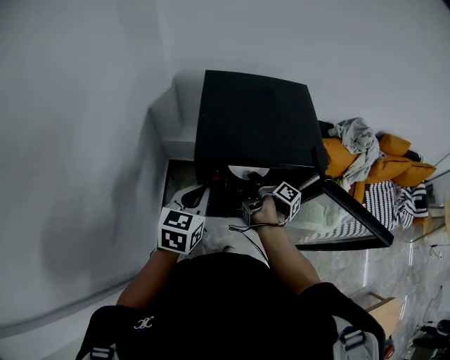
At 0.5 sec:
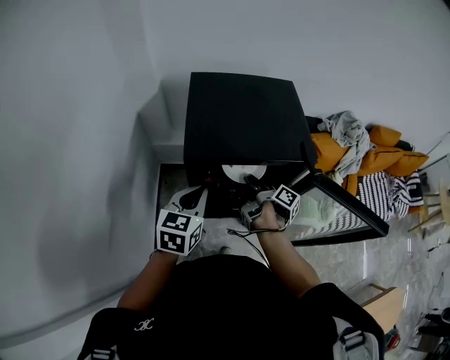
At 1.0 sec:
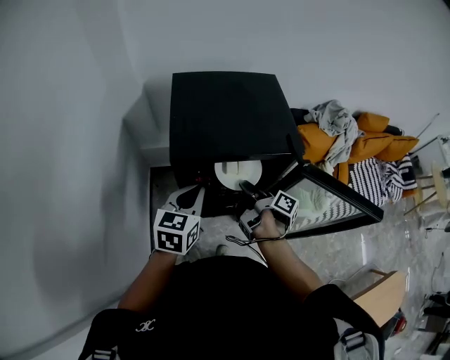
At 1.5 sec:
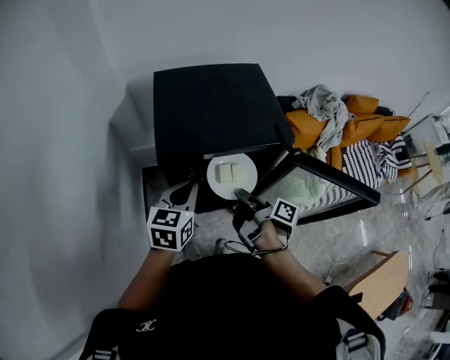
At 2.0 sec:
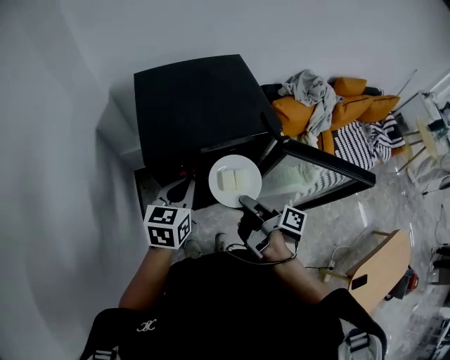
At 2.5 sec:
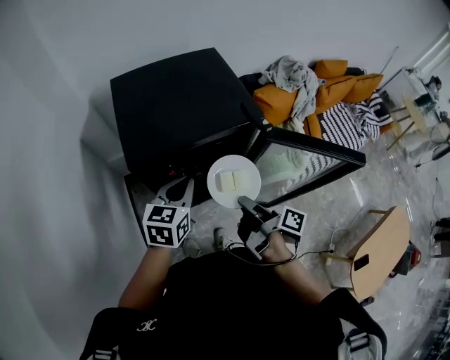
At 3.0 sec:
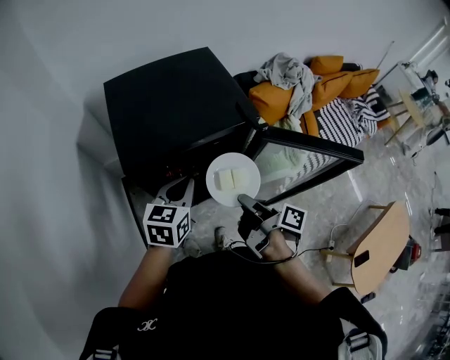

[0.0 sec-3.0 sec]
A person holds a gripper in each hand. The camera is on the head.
1.5 sec to 3.0 sec: The left gripper ends up some 5 cm from where it was.

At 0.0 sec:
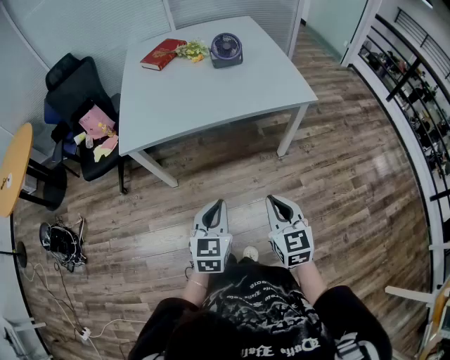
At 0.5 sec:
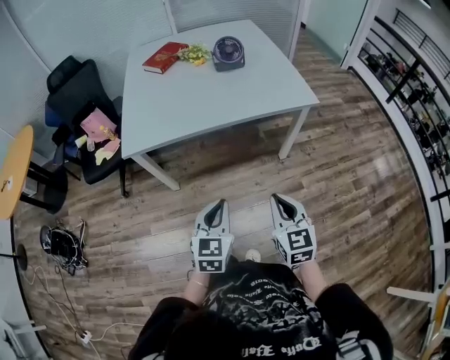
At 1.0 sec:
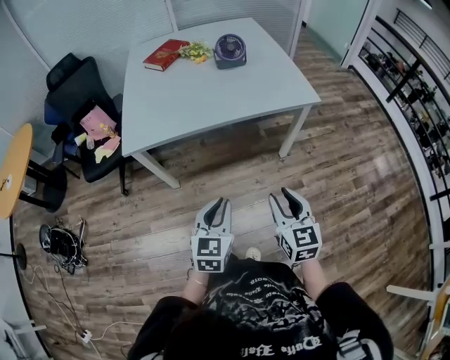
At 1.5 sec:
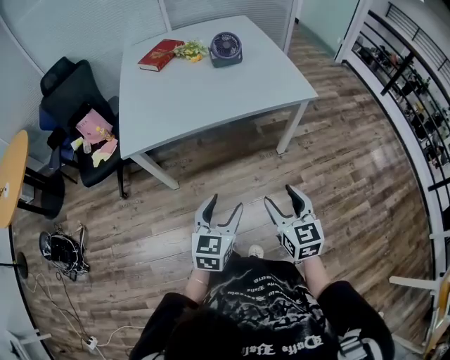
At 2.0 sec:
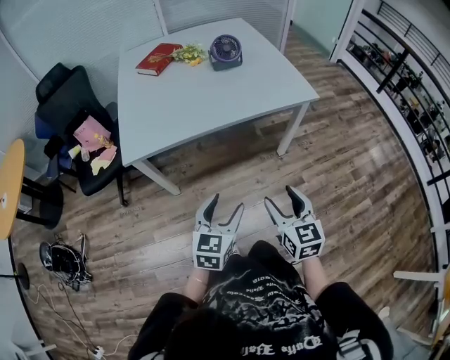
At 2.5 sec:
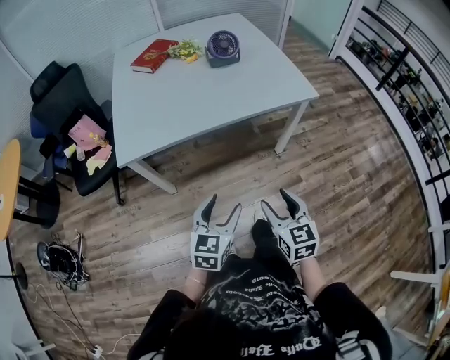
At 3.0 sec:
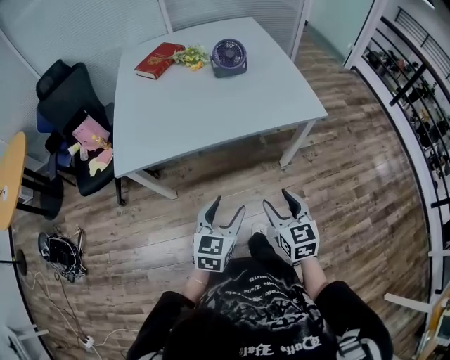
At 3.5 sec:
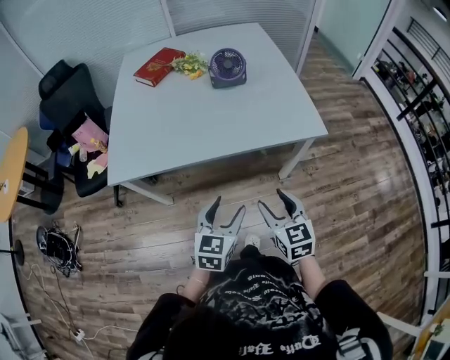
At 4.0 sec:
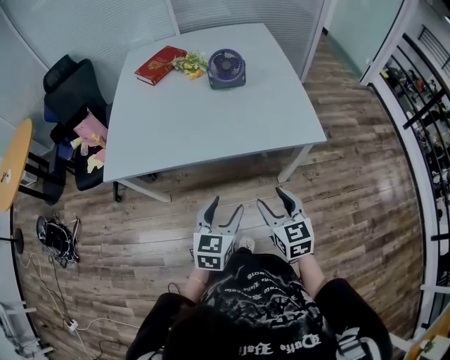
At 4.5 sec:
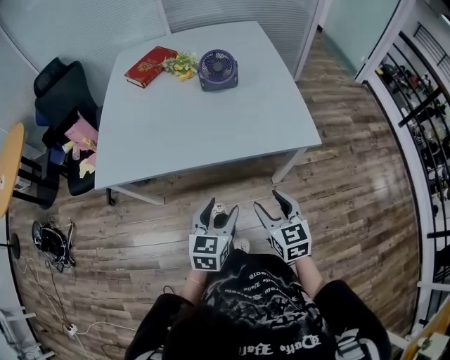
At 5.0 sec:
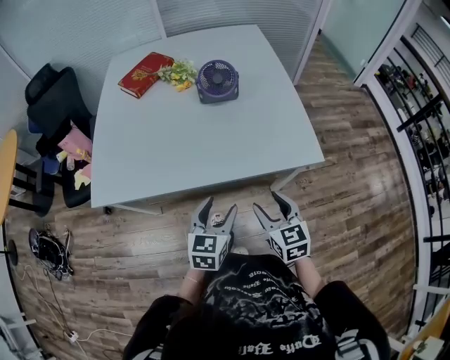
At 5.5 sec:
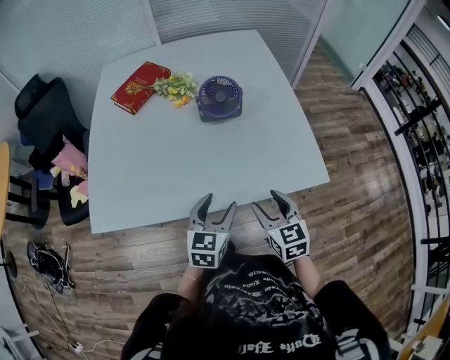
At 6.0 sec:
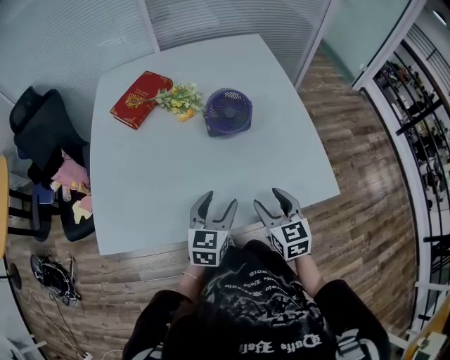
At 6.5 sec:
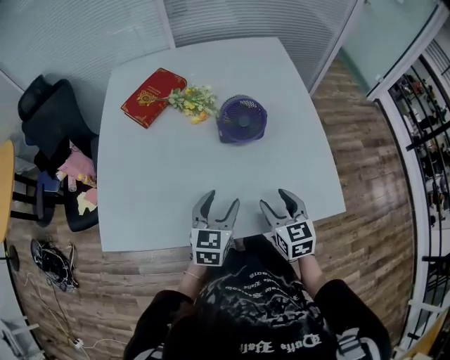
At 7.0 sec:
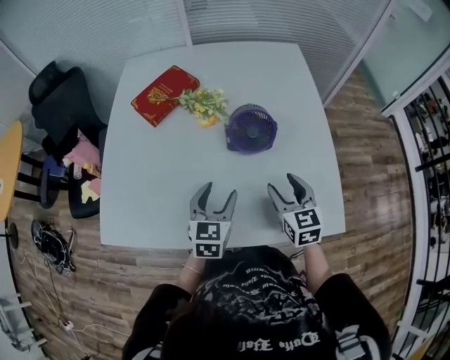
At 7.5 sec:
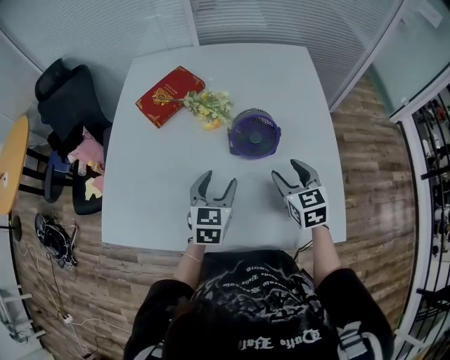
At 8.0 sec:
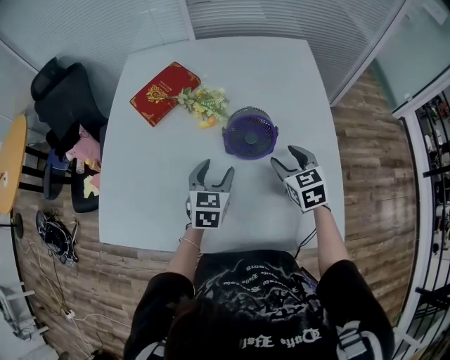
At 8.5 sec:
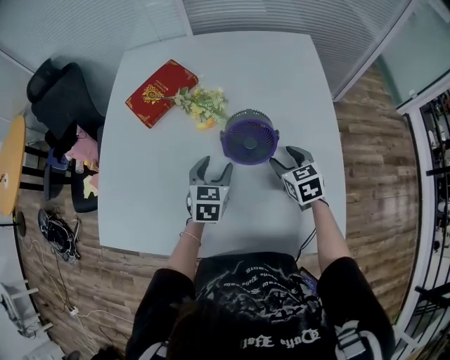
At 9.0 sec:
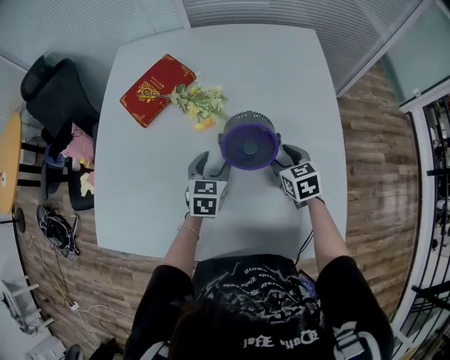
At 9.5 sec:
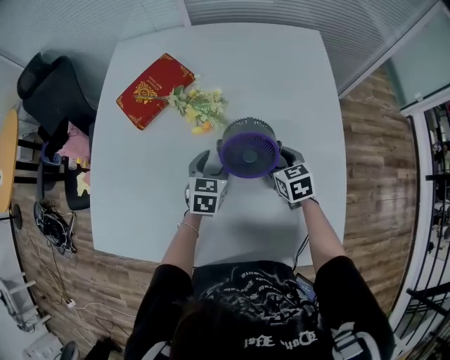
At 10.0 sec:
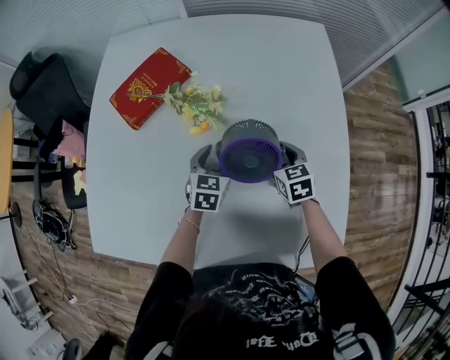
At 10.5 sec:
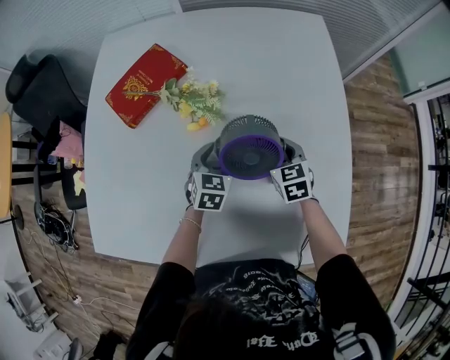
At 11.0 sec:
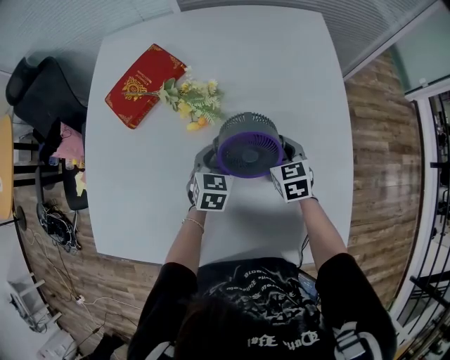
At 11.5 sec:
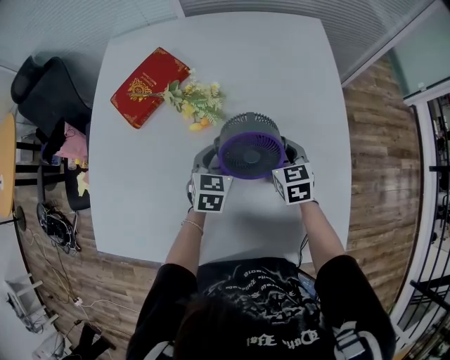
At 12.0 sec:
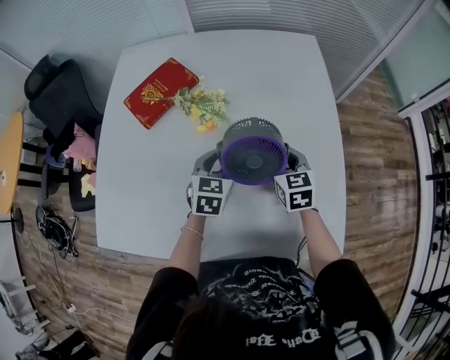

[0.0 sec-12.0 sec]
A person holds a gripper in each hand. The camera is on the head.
0.0 sec to 2.0 sec: The two grippers go approximately 5 cm to the left. The right gripper opens, while the left gripper opens its fingers.
2.0 sec to 4.0 sec: The two grippers go approximately 25 cm forward and to the right.
4.0 sec to 6.0 sec: The two grippers go about 30 cm forward.
6.0 sec to 8.0 sec: Both grippers travel together forward, approximately 20 cm.
8.0 sec to 10.0 sec: The right gripper heads downward and forward, covering about 15 cm, while the left gripper shifts about 15 cm forward and downward.
10.0 sec to 12.0 sec: The two grippers go some 10 cm upward. The left gripper closes. Meanwhile the right gripper closes up.

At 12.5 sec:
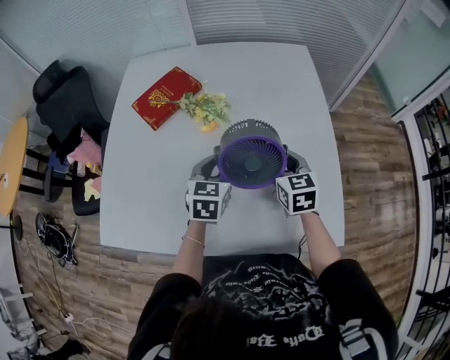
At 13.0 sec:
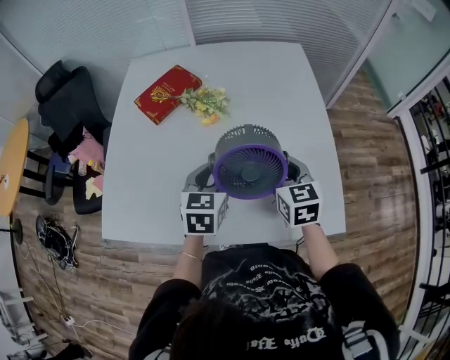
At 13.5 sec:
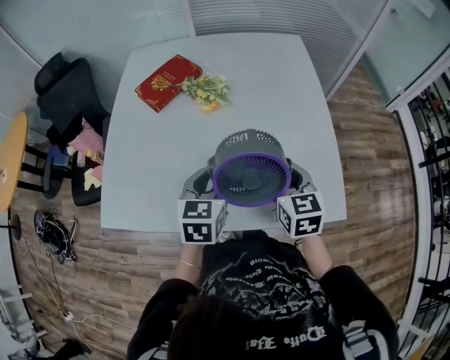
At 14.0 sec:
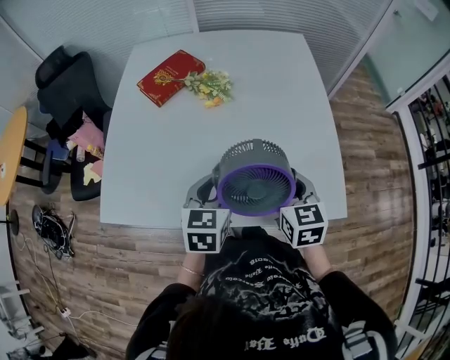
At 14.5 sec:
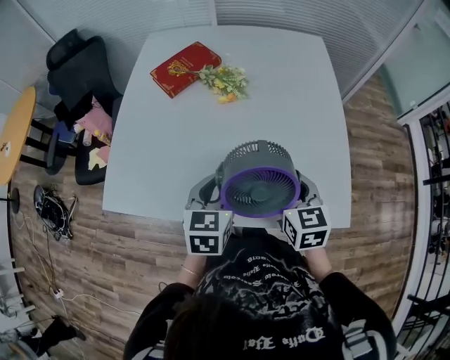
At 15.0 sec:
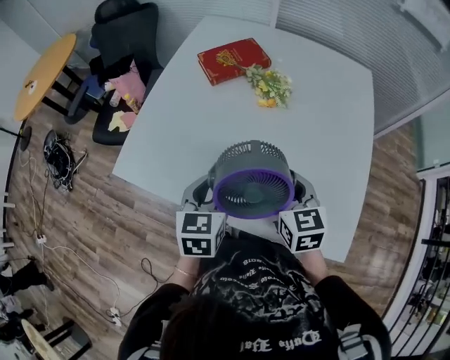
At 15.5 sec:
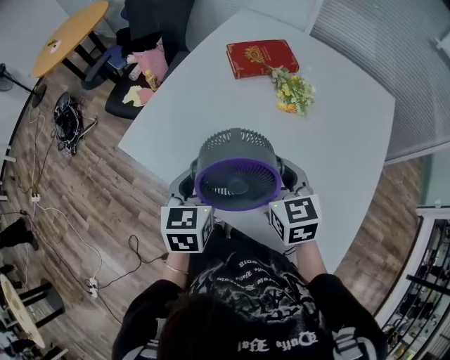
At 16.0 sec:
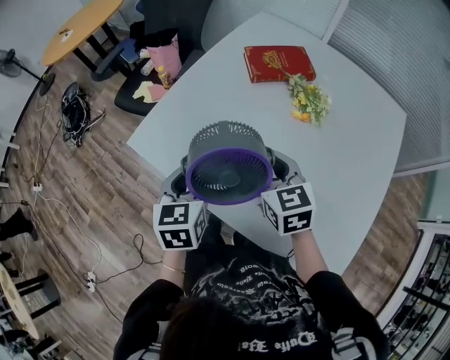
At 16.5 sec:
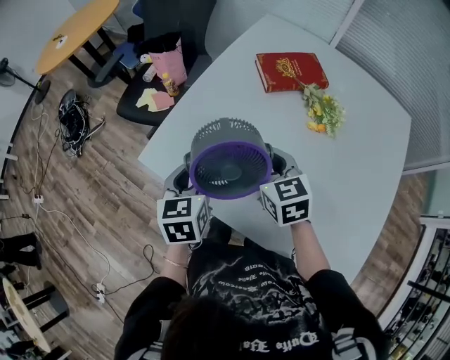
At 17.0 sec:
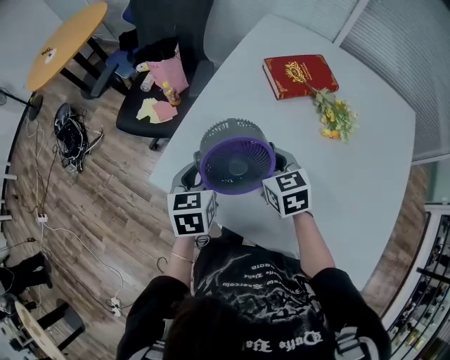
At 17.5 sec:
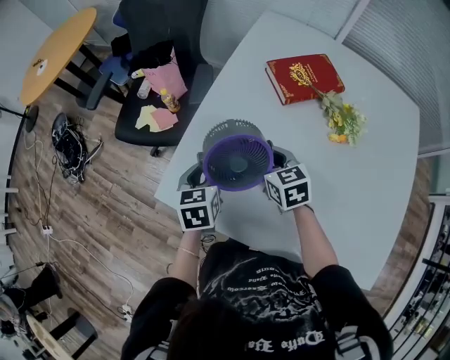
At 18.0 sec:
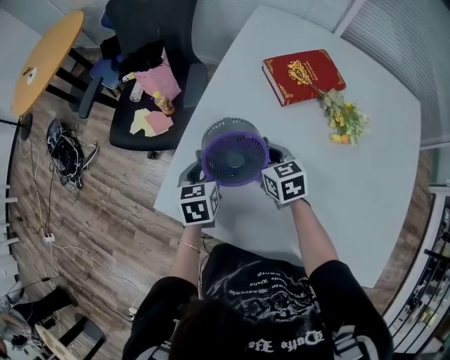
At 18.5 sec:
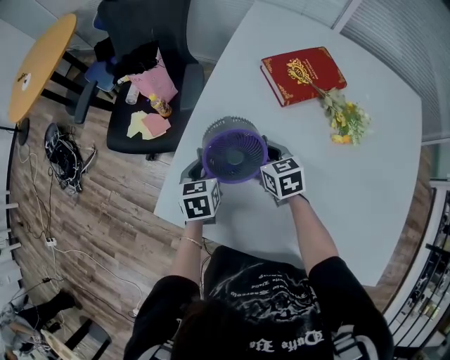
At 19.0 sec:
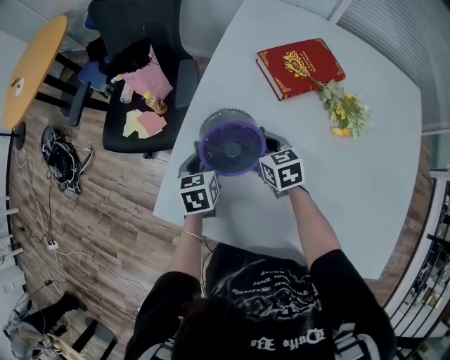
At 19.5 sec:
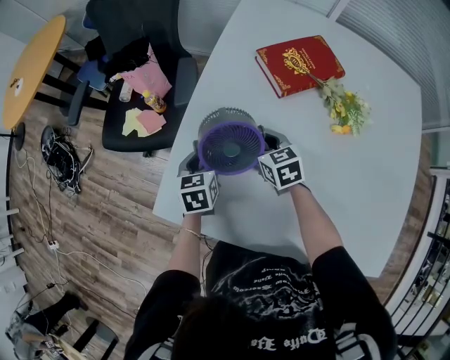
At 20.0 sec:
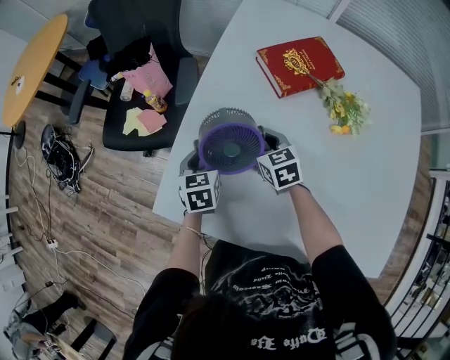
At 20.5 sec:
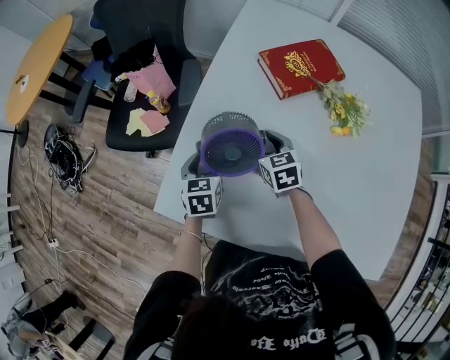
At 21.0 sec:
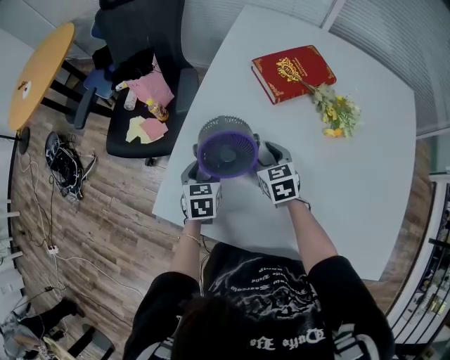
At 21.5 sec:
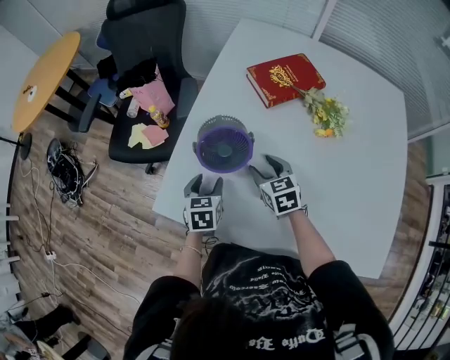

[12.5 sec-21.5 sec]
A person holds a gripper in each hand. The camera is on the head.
12.5 sec to 14.5 sec: The grippers both shift backward by about 15 cm.
14.5 sec to 17.0 sec: The right gripper changes place by about 40 cm, and turns by approximately 40 degrees; the left gripper shifts by approximately 35 cm, and swivels approximately 30 degrees.
17.0 sec to 19.5 sec: The two grippers go about 20 cm forward and downward.
19.5 sec to 21.5 sec: Both grippers move backward, about 10 cm. The left gripper opens up. The right gripper opens.

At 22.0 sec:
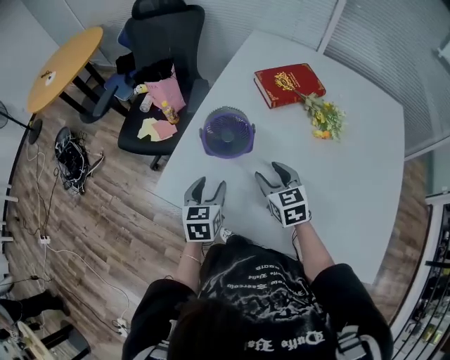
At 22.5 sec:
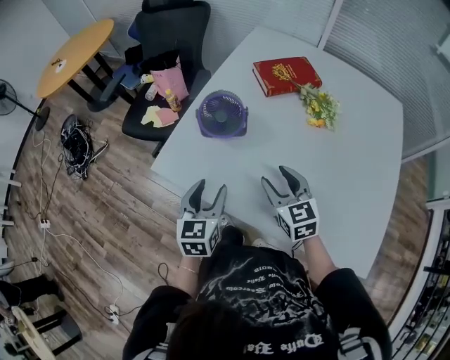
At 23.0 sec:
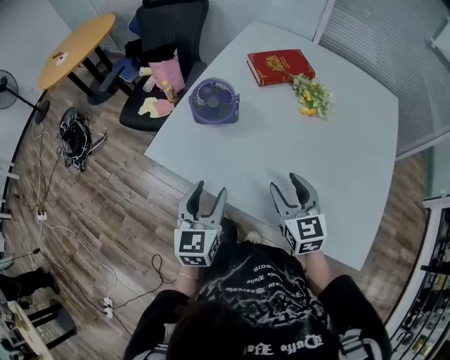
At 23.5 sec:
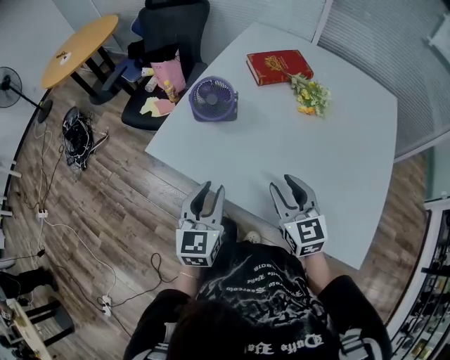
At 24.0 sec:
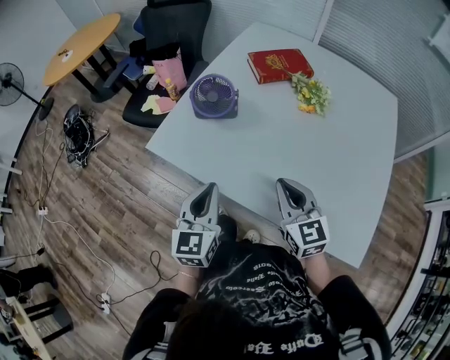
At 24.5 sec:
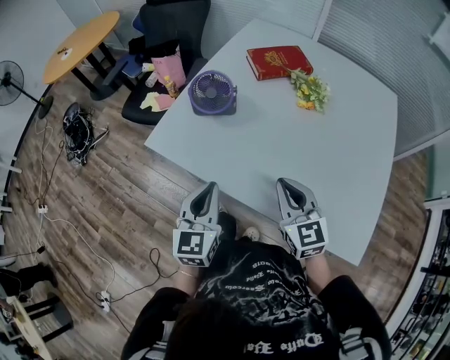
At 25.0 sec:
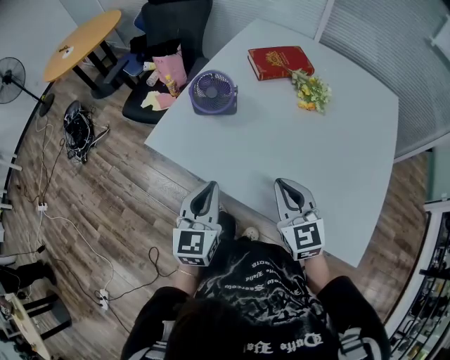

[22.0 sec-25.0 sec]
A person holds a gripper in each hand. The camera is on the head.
22.0 sec to 23.5 sec: The grippers both shift backward and upward by roughly 20 cm. The left gripper closes its fingers.
23.5 sec to 25.0 sec: The right gripper closes up; the left gripper closes.
